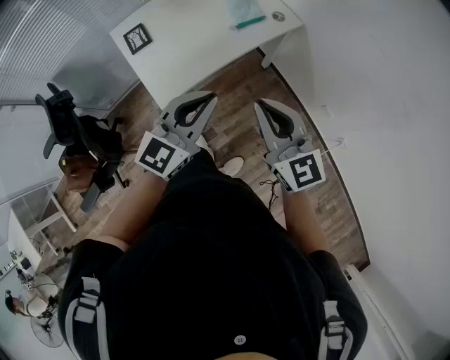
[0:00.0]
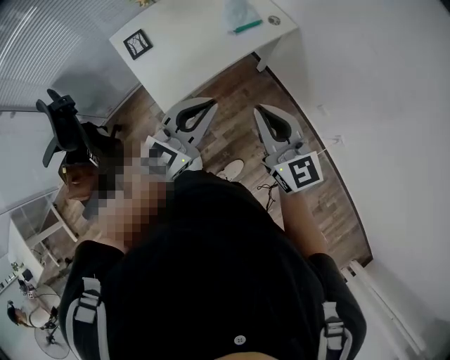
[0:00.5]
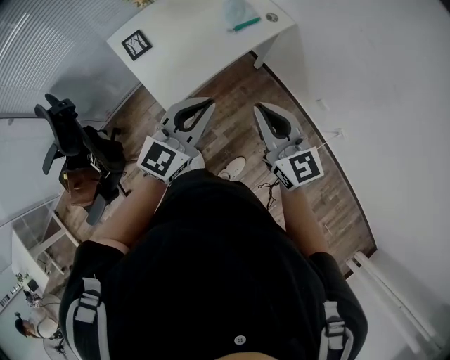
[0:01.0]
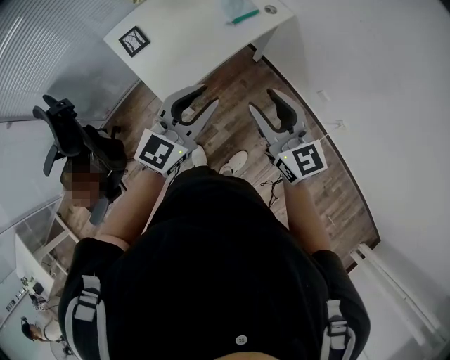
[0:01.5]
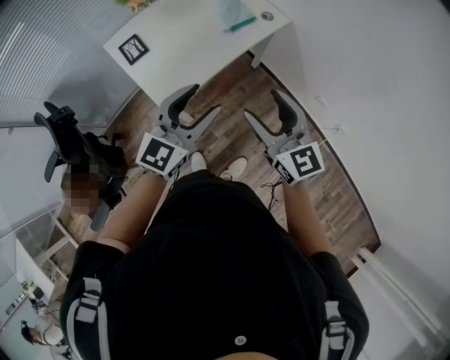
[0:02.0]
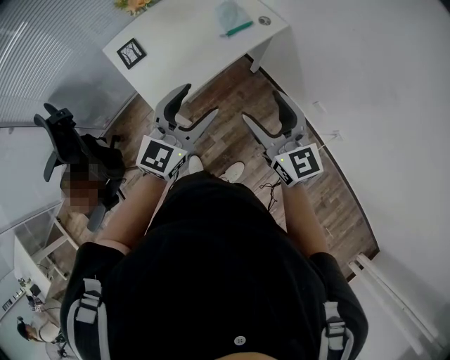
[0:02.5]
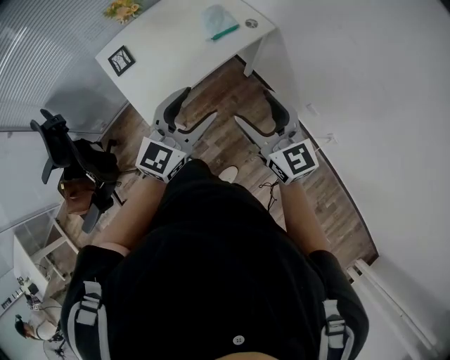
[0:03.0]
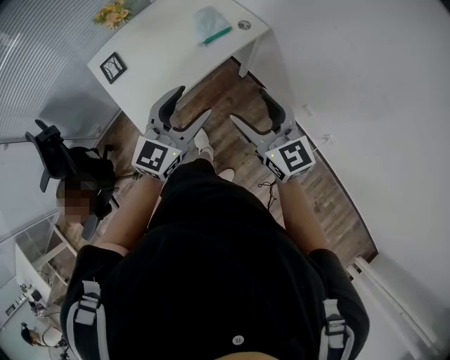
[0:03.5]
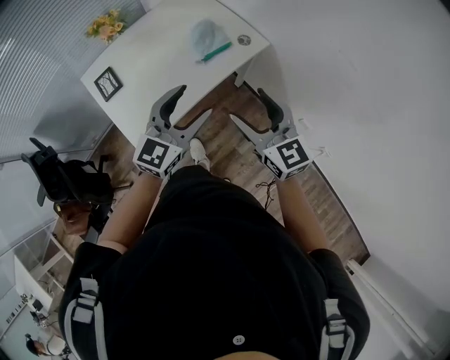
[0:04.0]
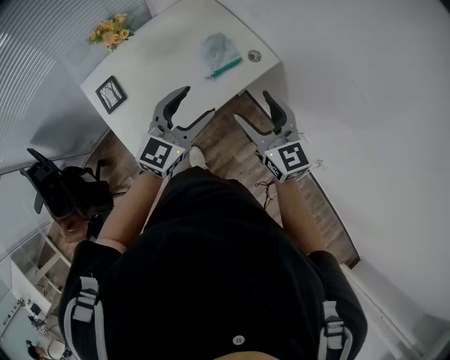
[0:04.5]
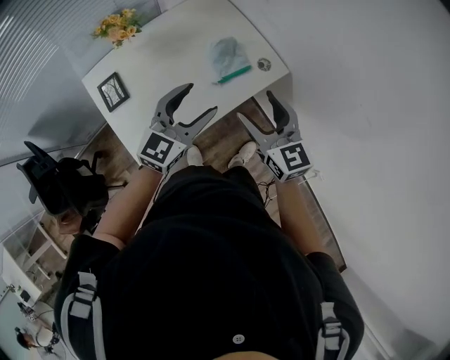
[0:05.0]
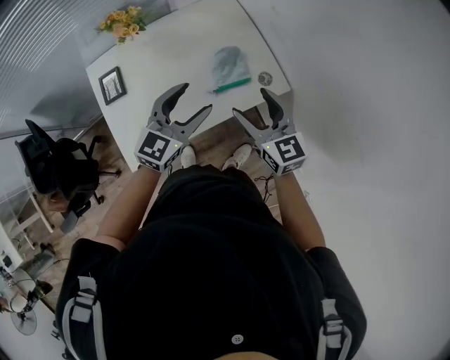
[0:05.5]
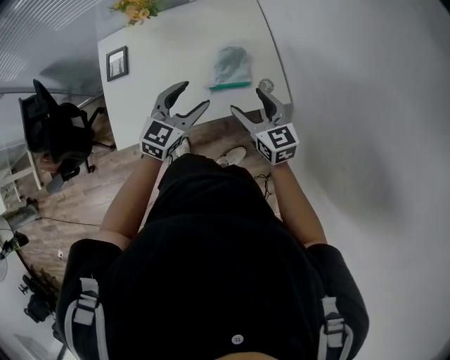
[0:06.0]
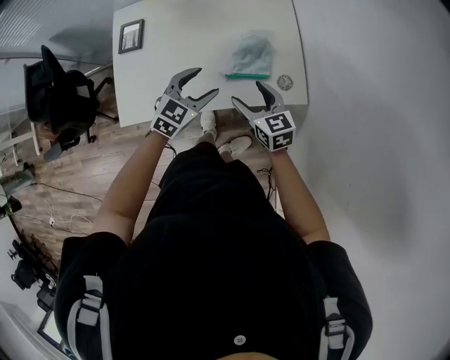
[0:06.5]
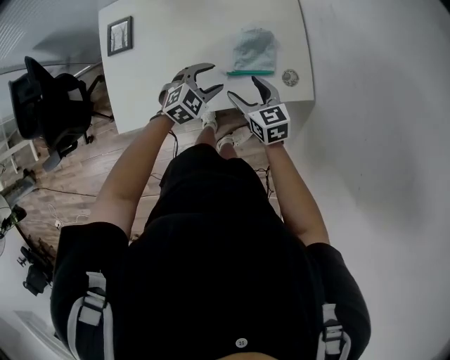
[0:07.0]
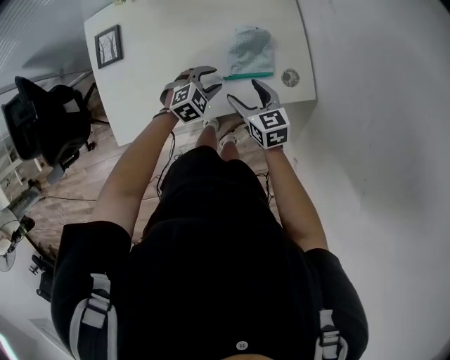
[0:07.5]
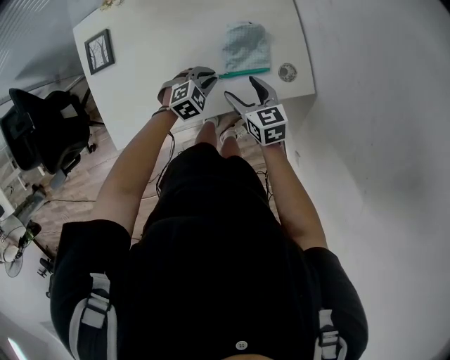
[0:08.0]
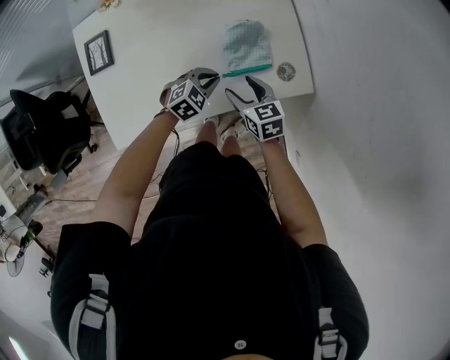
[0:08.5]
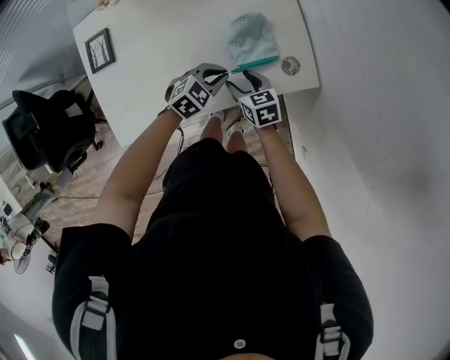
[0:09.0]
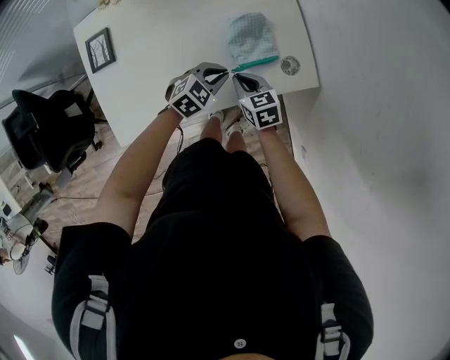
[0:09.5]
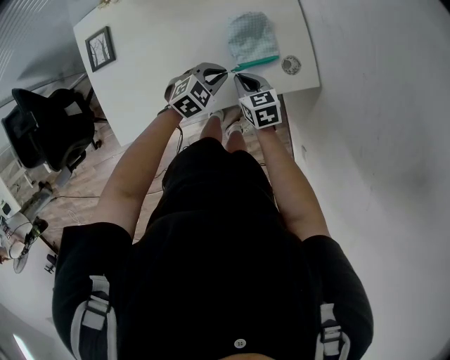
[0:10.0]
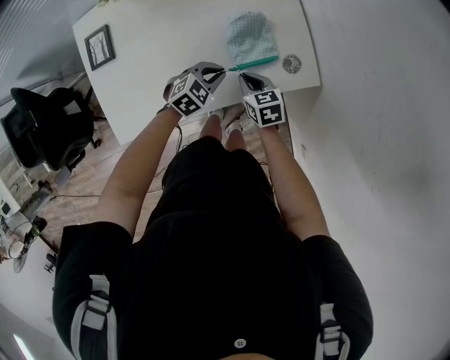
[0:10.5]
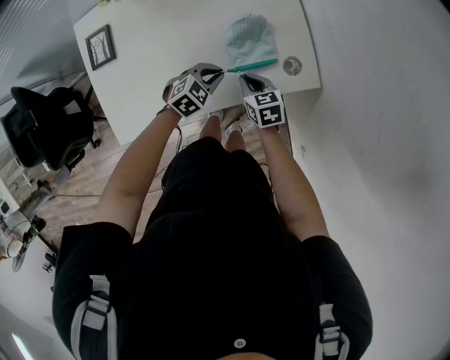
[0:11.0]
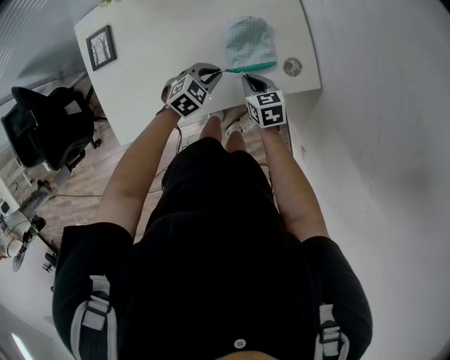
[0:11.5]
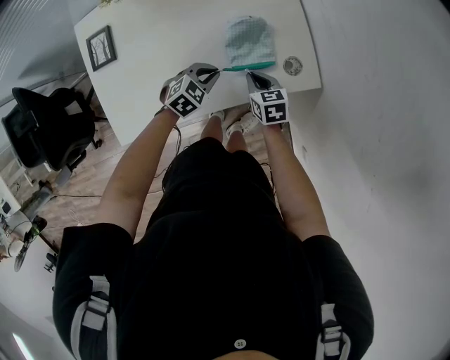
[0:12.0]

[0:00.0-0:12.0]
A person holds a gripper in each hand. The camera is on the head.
0:00.0 to 0:02.0: The right gripper opens up. The left gripper travels to the left by some 5 cm, and opens up.
0:02.0 to 0:04.0: Both grippers move forward and to the right, roughly 20 cm.
0:04.0 to 0:06.0: The left gripper changes place by some 25 cm, and rotates some 30 degrees. Meanwhile the right gripper shifts by some 30 cm, and changes its angle by roughly 30 degrees.
0:06.0 to 0:08.0: The left gripper goes some 25 cm downward, points its fingers roughly 30 degrees further downward, and closes; the right gripper heads downward, covering about 20 cm, and rotates approximately 20 degrees.
0:08.0 to 0:10.0: The right gripper is displaced downward by approximately 5 cm, and closes.
0:10.0 to 0:12.0: The grippers stay close to where they were, moving slightly.

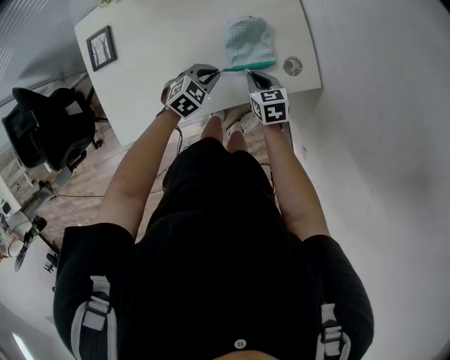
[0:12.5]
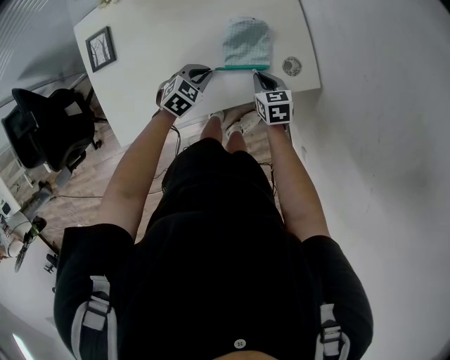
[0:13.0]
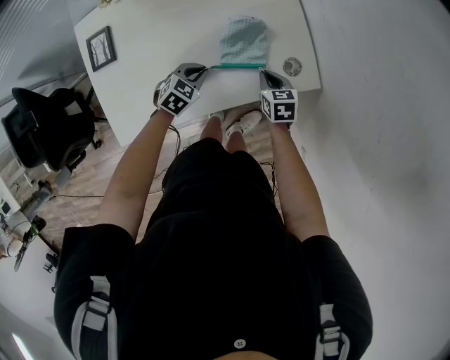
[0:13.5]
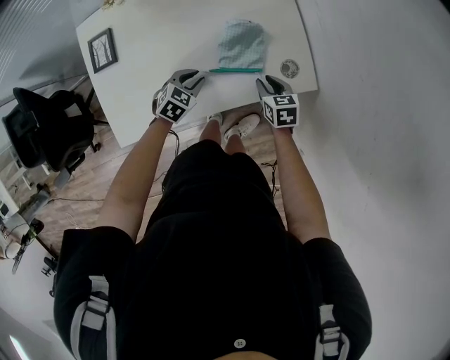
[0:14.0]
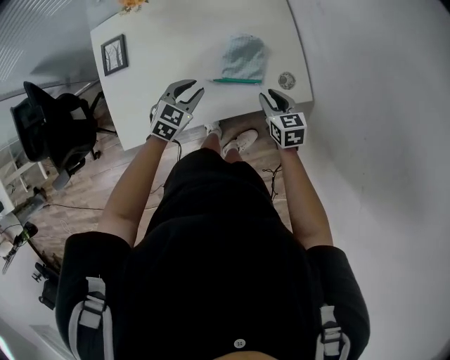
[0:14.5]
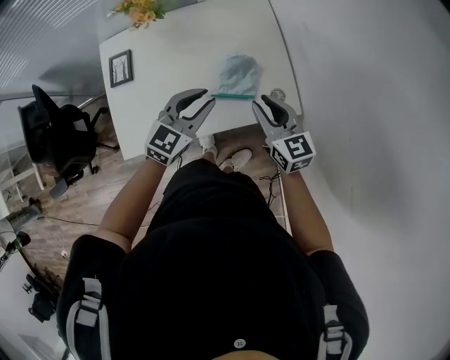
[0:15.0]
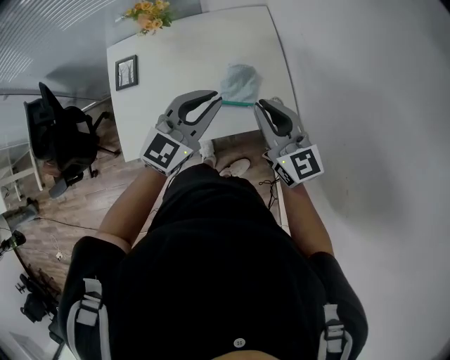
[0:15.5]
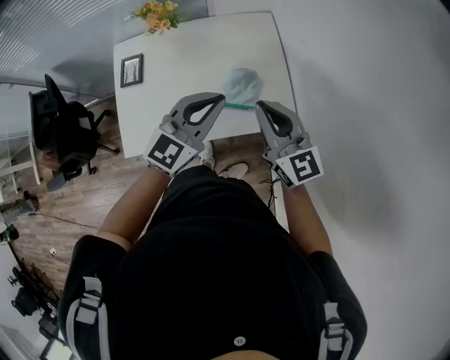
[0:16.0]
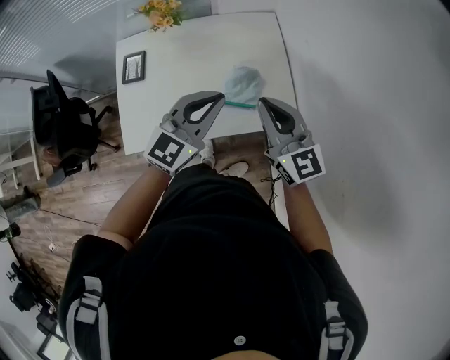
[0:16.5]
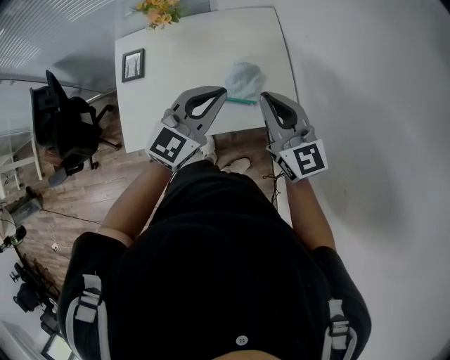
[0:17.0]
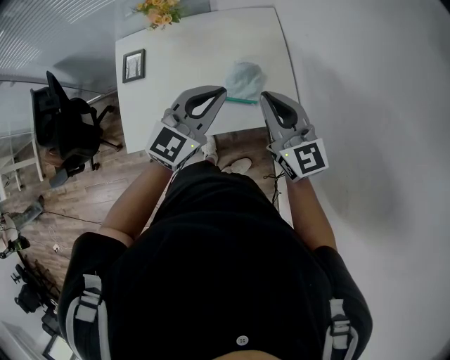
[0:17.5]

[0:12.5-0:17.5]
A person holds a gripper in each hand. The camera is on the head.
0:12.5 to 0:15.0: The two grippers go about 25 cm upward. The left gripper angles its fingers upward, by some 30 degrees. The right gripper tips its fingers upward by approximately 30 degrees.
0:15.0 to 0:17.5: Both grippers move upward, some 15 cm.

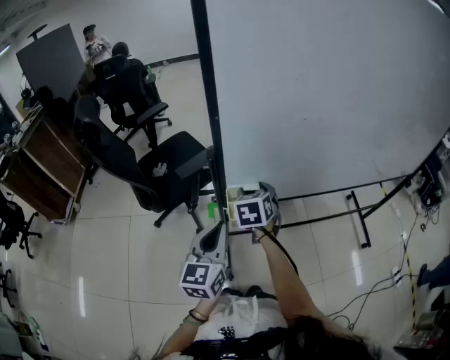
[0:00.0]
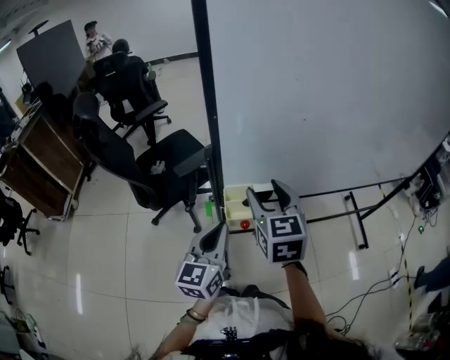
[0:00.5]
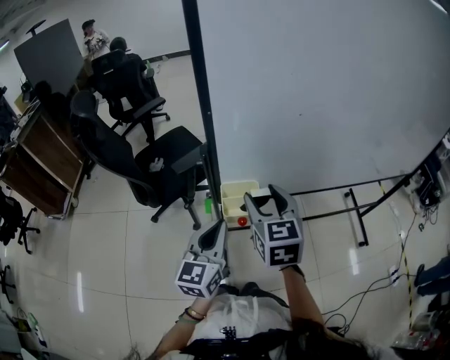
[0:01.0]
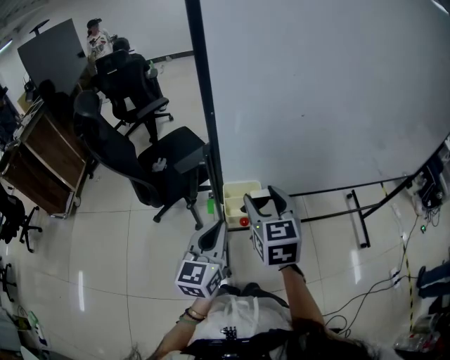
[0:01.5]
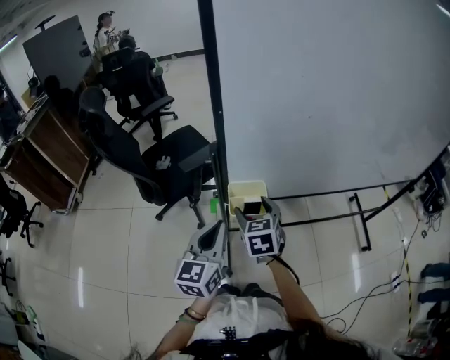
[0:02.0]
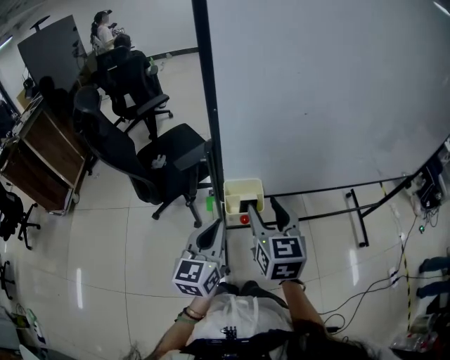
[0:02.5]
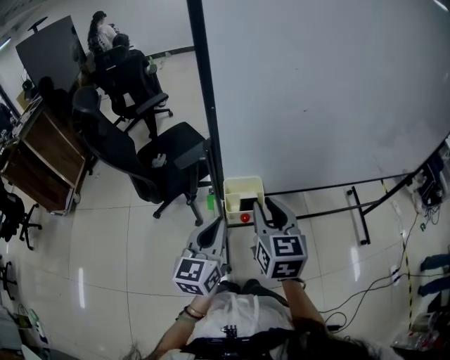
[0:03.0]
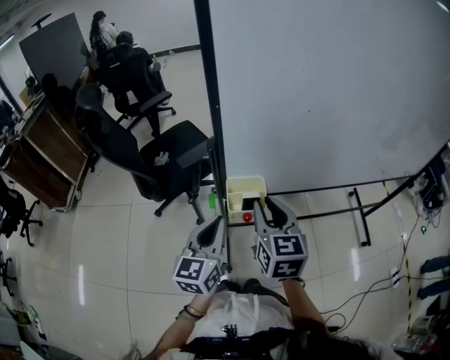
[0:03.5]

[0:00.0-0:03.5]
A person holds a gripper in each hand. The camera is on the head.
0:00.0 to 0:02.0: The right gripper is displaced backward by roughly 5 cm, and travels upward and back again, some 15 cm each way.
0:02.0 to 0:03.5: The right gripper travels upward by roughly 10 cm, and closes up.

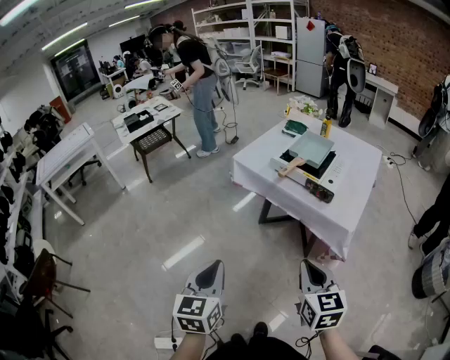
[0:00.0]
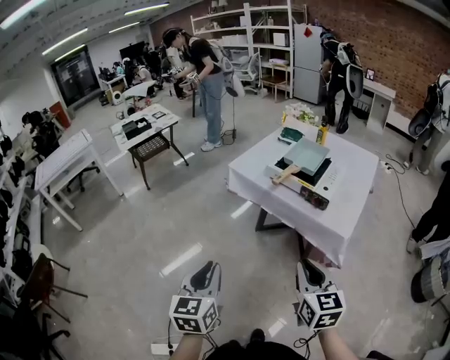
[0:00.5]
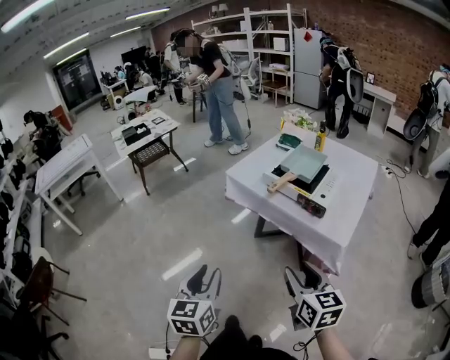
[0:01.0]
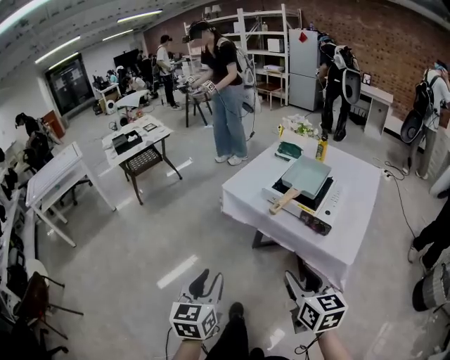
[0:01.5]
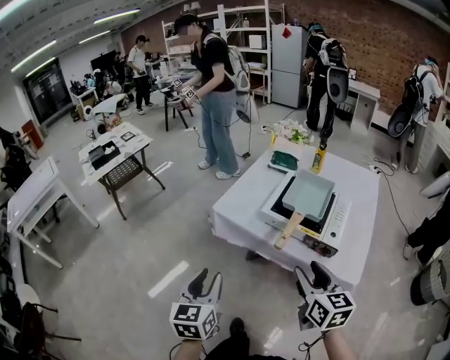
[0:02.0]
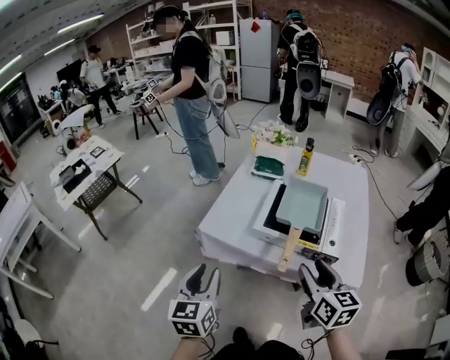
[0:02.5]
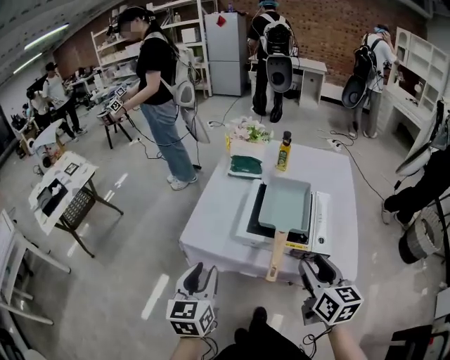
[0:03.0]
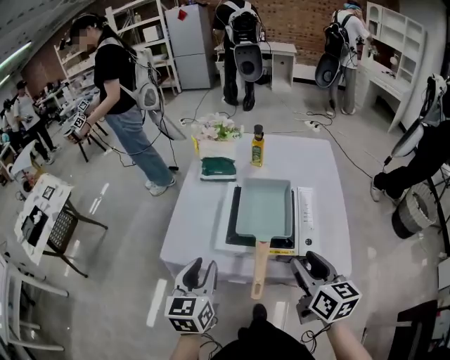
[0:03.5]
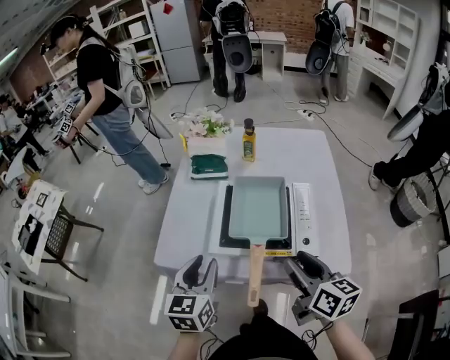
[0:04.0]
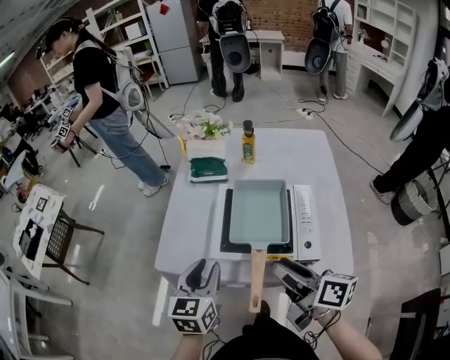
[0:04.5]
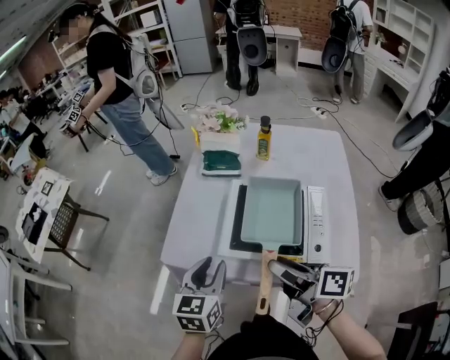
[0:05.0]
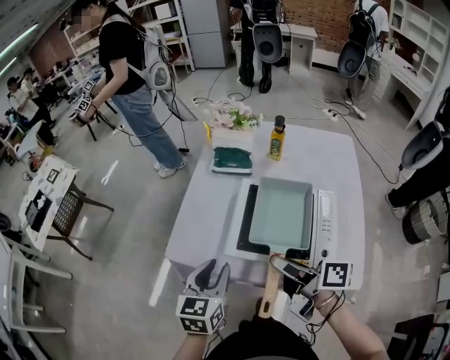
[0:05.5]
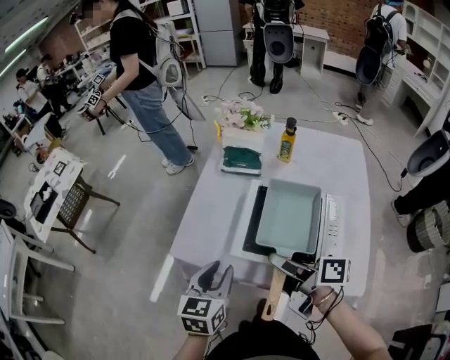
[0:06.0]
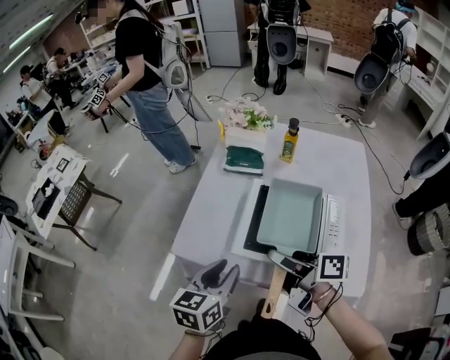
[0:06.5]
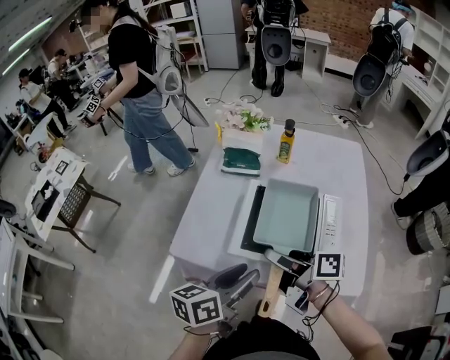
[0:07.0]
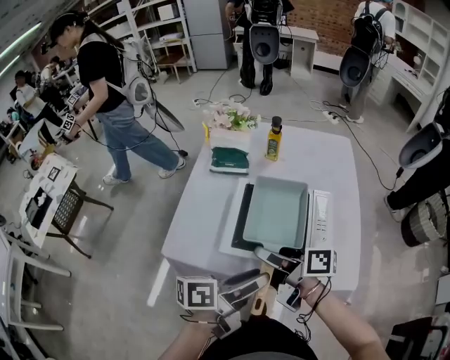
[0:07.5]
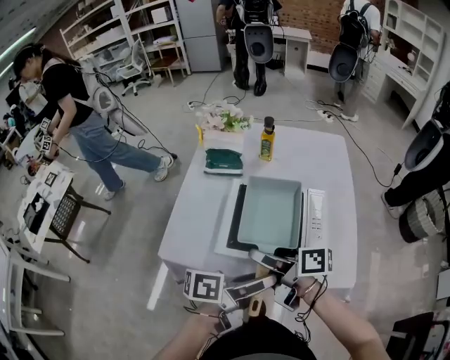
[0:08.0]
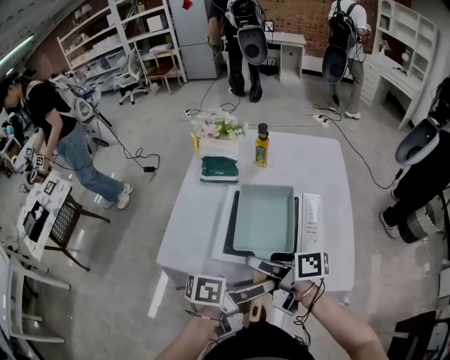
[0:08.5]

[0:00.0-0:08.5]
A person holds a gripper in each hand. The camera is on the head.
0:00.0 to 0:02.0: Both grippers move forward, about 25 cm. The left gripper opens its fingers; the right gripper opens its fingers.
0:02.0 to 0:04.0: The left gripper shifts about 25 cm forward, and changes its angle by some 30 degrees. The right gripper is displaced forward and to the right by approximately 15 cm, and changes its angle by roughly 30 degrees.
0:04.0 to 0:06.5: The right gripper travels to the left and forward by roughly 15 cm, and turns by roughly 50 degrees.
0:06.5 to 0:08.5: The left gripper moves about 15 cm, and changes its angle by some 60 degrees.
